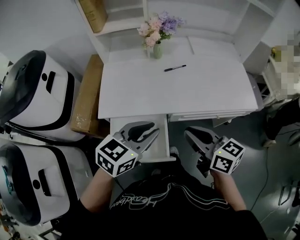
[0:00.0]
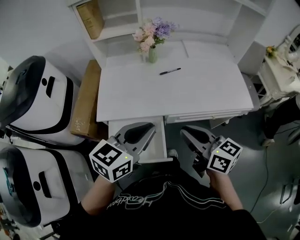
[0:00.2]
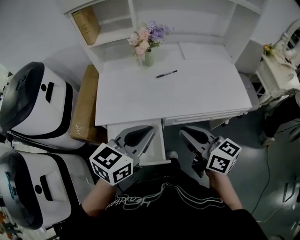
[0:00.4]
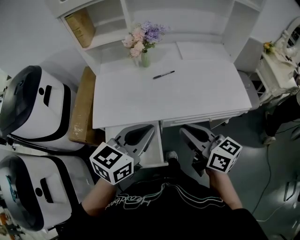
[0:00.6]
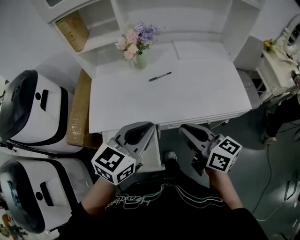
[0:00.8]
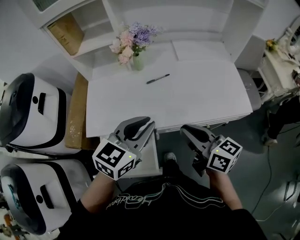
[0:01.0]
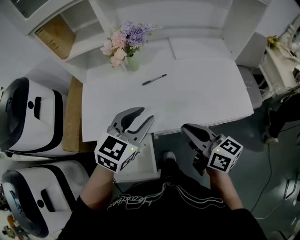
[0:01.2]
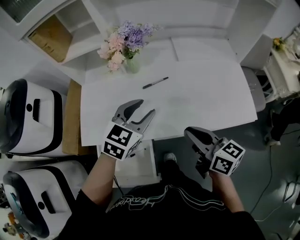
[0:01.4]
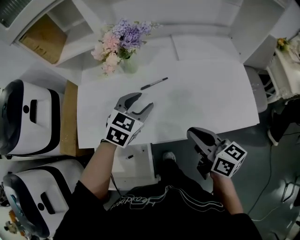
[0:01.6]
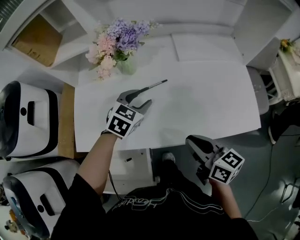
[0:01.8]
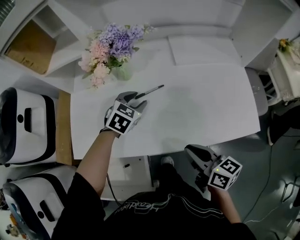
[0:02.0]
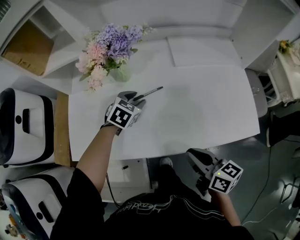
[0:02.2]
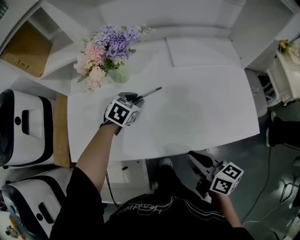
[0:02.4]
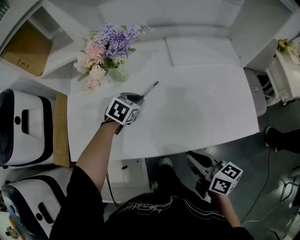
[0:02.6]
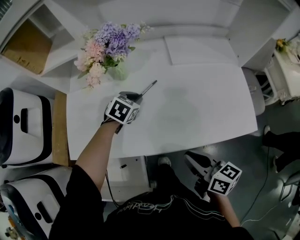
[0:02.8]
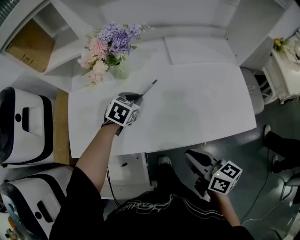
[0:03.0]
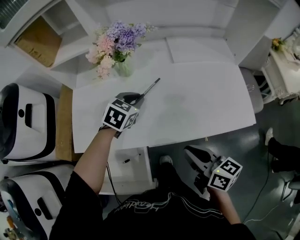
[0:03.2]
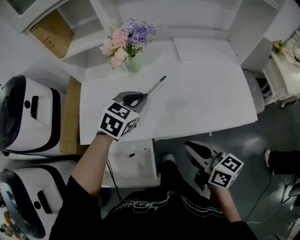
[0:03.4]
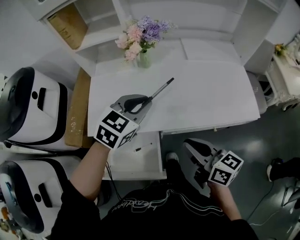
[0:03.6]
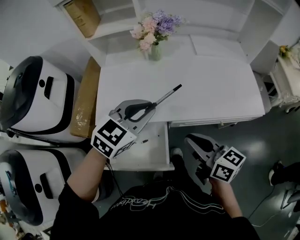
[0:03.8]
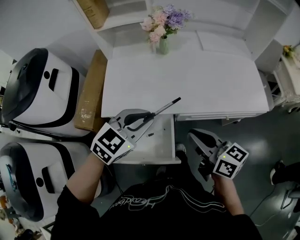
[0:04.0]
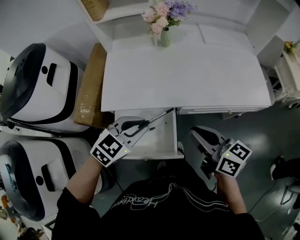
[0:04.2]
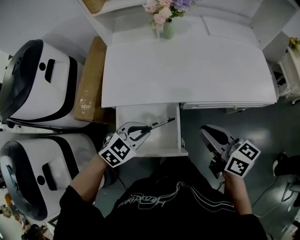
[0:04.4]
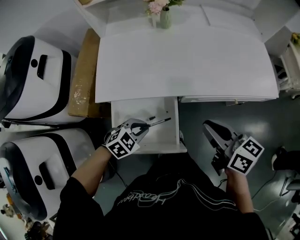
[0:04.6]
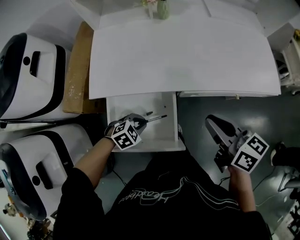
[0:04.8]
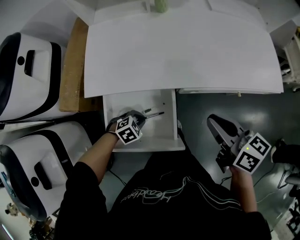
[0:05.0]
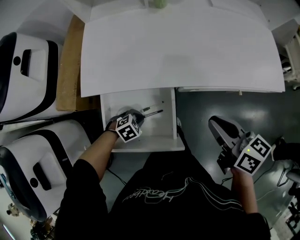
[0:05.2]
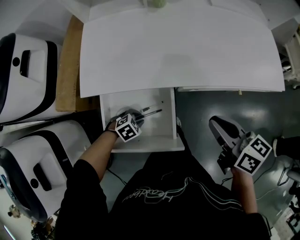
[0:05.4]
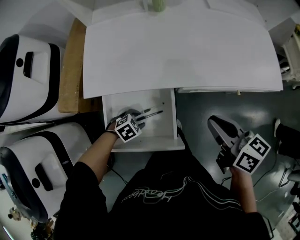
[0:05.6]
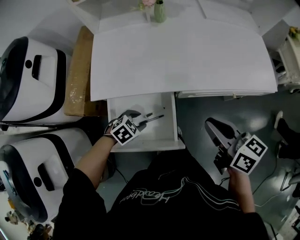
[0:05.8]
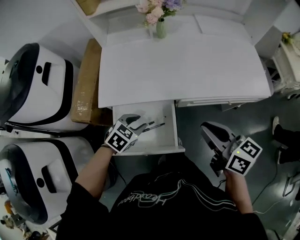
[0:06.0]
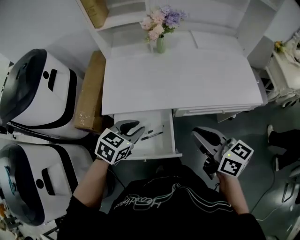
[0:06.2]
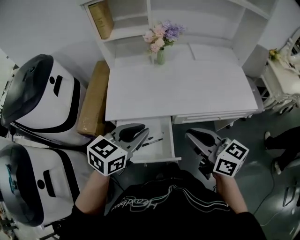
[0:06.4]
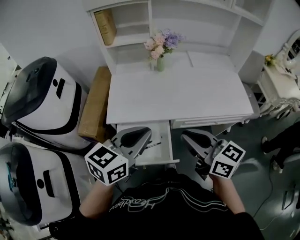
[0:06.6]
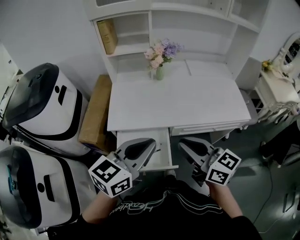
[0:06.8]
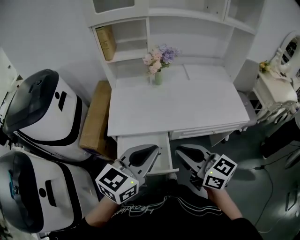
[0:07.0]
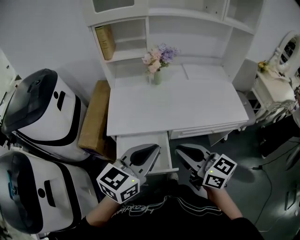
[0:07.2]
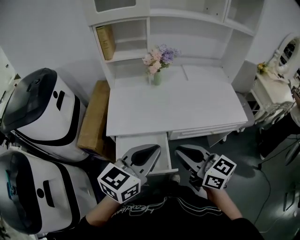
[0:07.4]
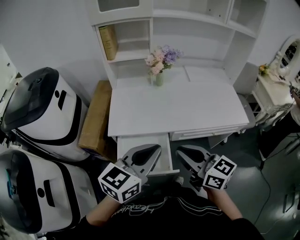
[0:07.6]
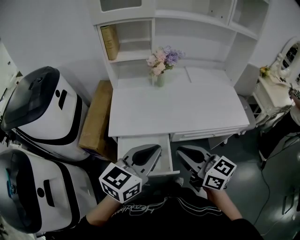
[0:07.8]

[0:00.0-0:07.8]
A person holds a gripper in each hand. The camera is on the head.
0:00.0 to 0:01.6: The left gripper travels forward by about 30 cm, changes its angle by roughly 20 degrees, and opens its fingers. Meanwhile the right gripper moves forward and to the right, roughly 25 cm.
0:01.6 to 0:03.2: The left gripper closes up; the right gripper travels backward by approximately 5 cm.
0:03.2 to 0:04.6: The left gripper travels backward and to the left by about 40 cm, and changes its angle by about 20 degrees. The right gripper shifts about 15 cm to the left and backward.
0:04.6 to 0:06.2: The right gripper goes roughly 10 cm upward, while the left gripper heads upward, covering some 15 cm, turns by some 30 degrees, and opens, then closes once more.
0:06.2 to 0:07.8: The left gripper heads upward and backward, covering roughly 20 cm, tips its fingers upward by some 30 degrees, and closes up. The right gripper moves upward and to the left, some 10 cm.

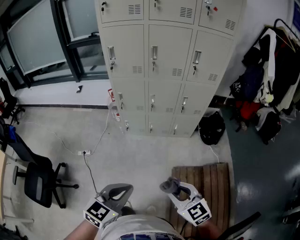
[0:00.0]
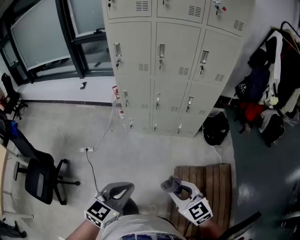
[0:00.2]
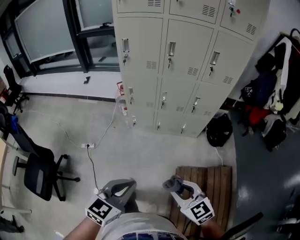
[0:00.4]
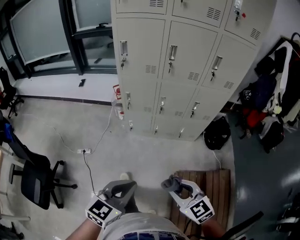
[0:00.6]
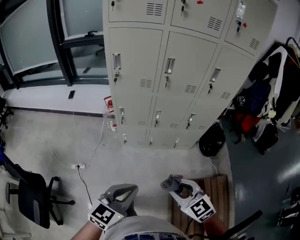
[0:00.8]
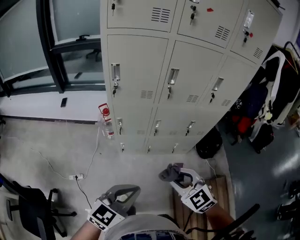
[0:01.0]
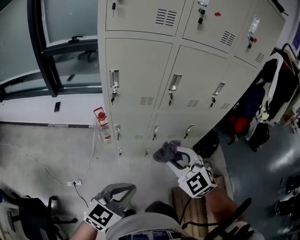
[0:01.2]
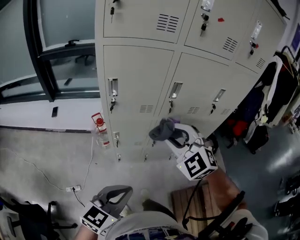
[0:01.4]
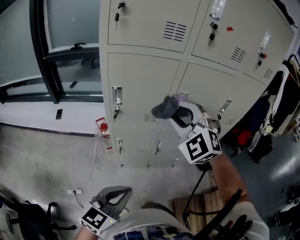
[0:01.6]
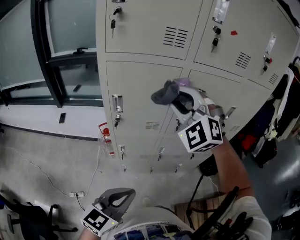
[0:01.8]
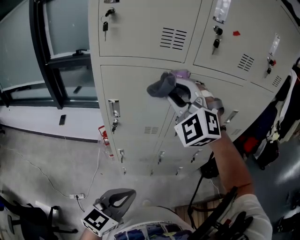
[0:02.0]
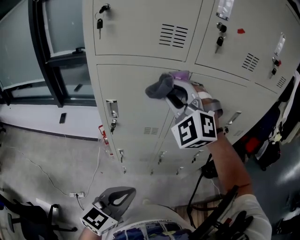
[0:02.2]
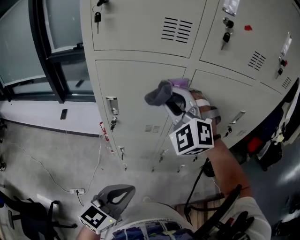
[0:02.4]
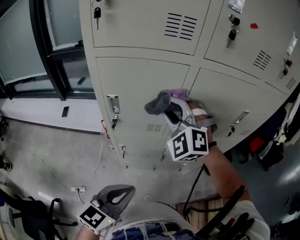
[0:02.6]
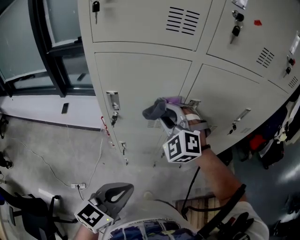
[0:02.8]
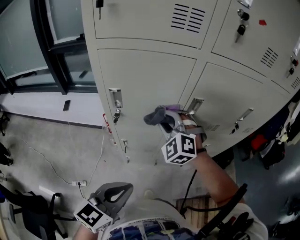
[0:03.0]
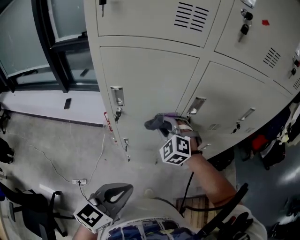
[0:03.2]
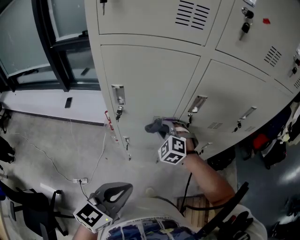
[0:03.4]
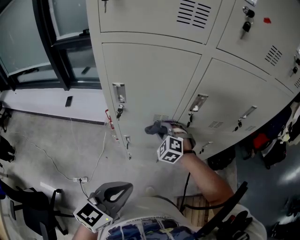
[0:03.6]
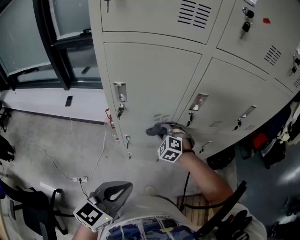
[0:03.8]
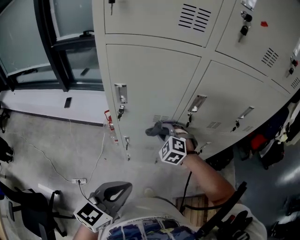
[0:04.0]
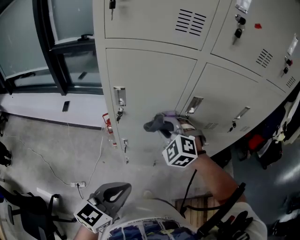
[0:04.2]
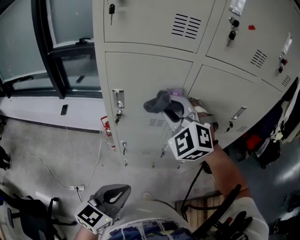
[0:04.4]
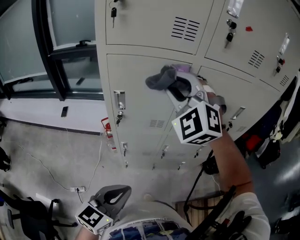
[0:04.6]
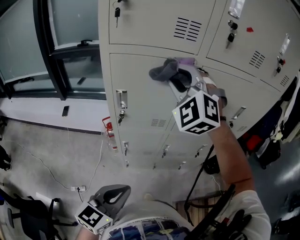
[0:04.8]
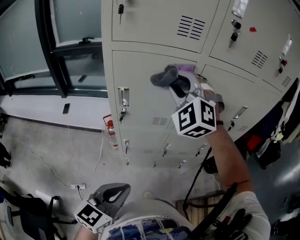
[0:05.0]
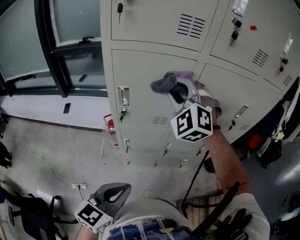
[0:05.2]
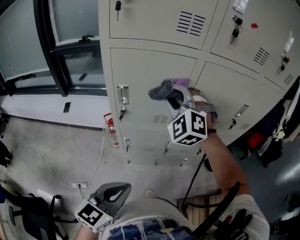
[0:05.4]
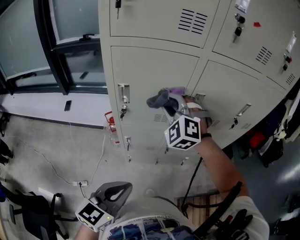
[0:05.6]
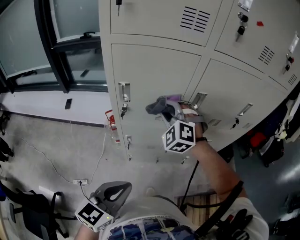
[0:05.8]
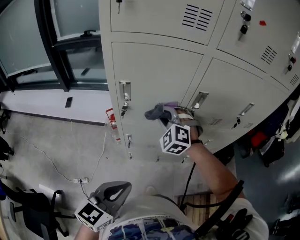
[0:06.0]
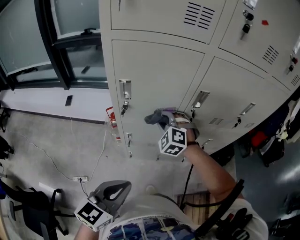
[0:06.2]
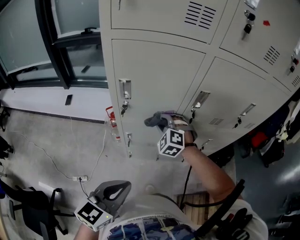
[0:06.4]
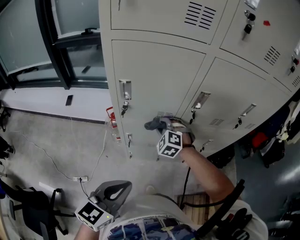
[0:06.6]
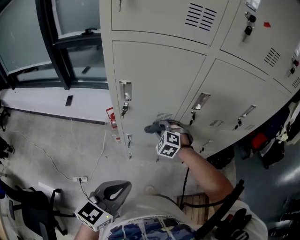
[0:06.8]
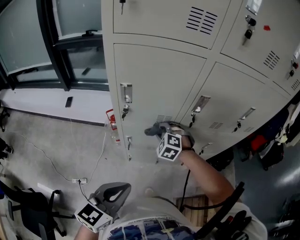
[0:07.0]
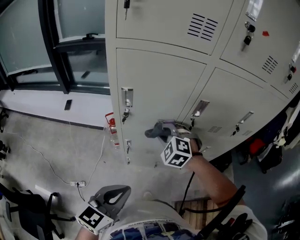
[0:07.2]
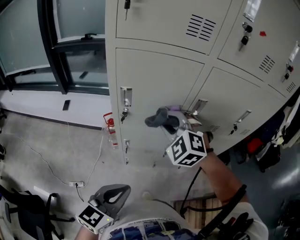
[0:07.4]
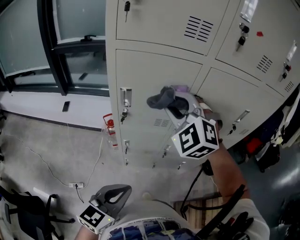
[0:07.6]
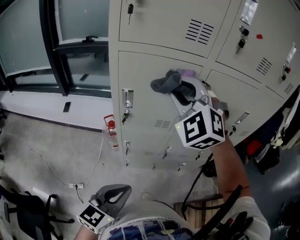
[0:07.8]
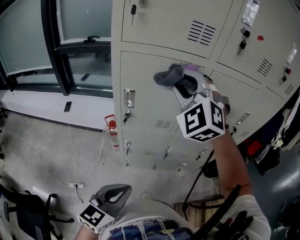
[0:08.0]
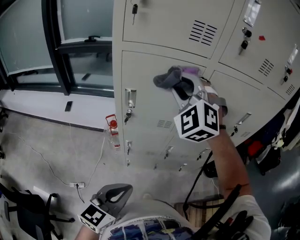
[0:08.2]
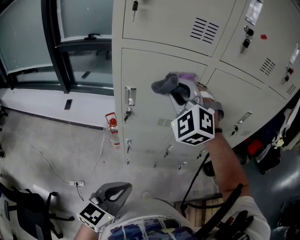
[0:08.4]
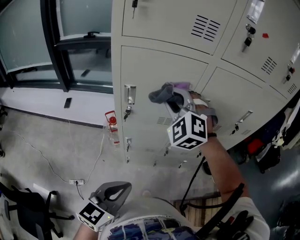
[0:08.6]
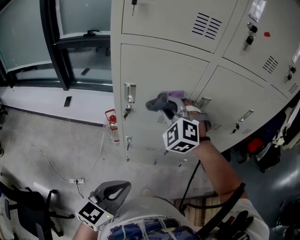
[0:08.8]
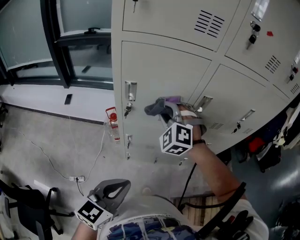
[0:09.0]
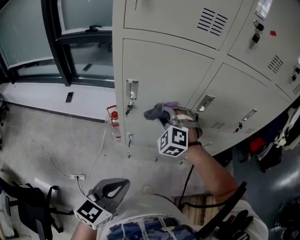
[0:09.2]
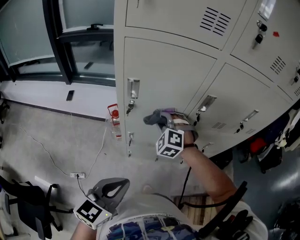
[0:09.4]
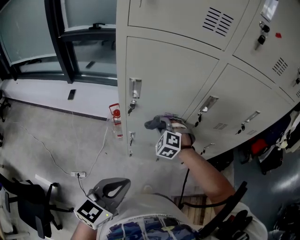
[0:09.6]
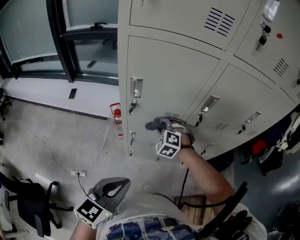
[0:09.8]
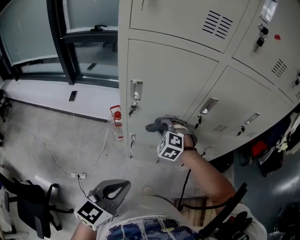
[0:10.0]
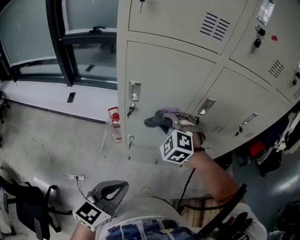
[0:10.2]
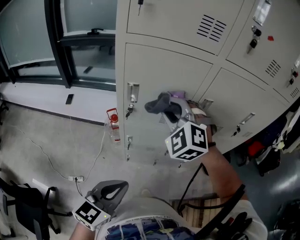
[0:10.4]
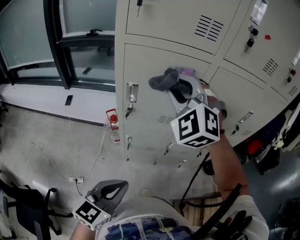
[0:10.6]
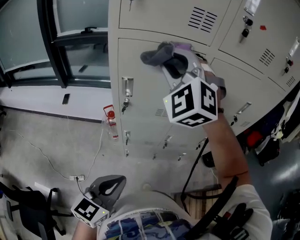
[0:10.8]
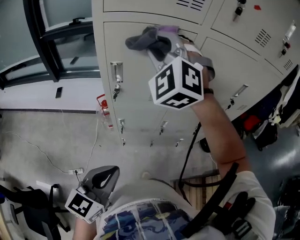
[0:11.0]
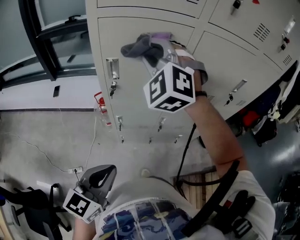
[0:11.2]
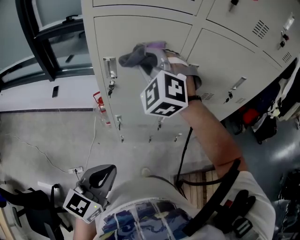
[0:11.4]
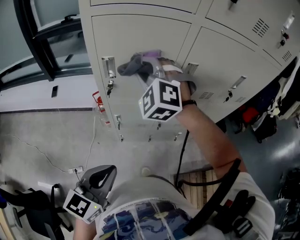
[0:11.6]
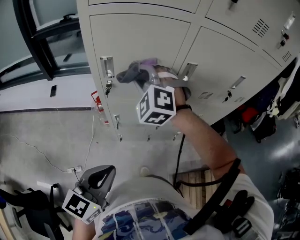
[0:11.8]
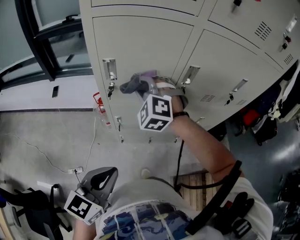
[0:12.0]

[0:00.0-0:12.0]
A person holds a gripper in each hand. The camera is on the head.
0:00.0 to 0:01.6: The pair of grippers is taken forward and to the left, some 50 cm. The right gripper shifts some 25 cm upward, and rotates around the line of its fingers by roughly 50 degrees, counterclockwise from behind.
0:01.6 to 0:03.0: The left gripper travels forward by about 10 cm, while the right gripper is displaced downward and forward by roughly 20 cm.
0:03.0 to 0:04.4: The right gripper heads upward, covering approximately 15 cm.
0:04.4 to 0:06.0: The right gripper travels downward by roughly 15 cm.
0:06.0 to 0:07.6: The right gripper shifts approximately 15 cm upward.
0:07.6 to 0:09.0: The right gripper heads downward, covering some 15 cm.
0:09.0 to 0:10.4: The right gripper reaches about 15 cm downward, then returns.
0:10.4 to 0:12.0: The right gripper goes some 10 cm downward.

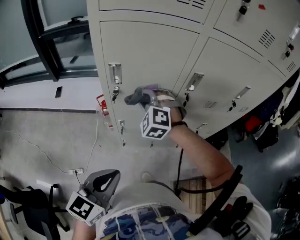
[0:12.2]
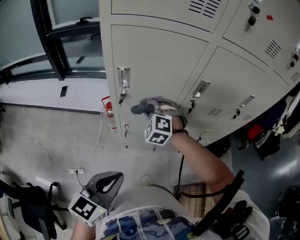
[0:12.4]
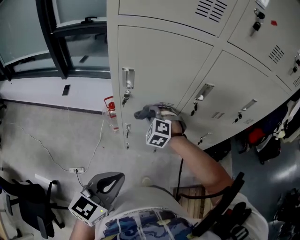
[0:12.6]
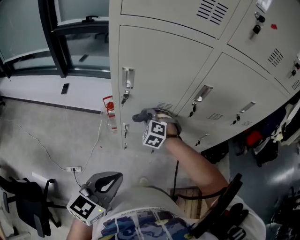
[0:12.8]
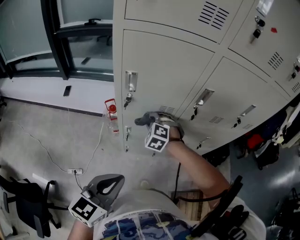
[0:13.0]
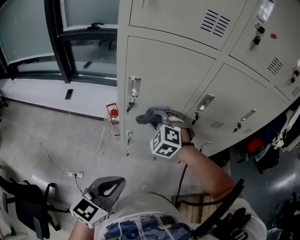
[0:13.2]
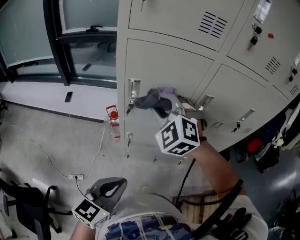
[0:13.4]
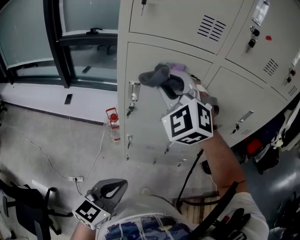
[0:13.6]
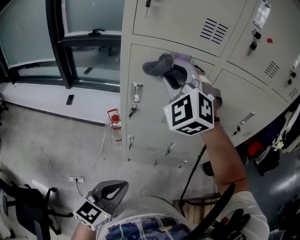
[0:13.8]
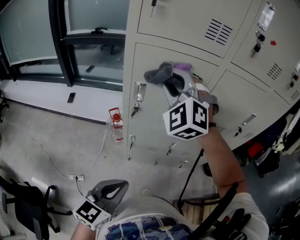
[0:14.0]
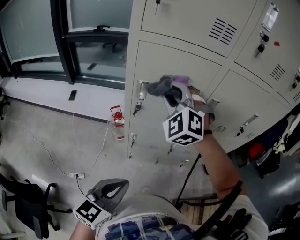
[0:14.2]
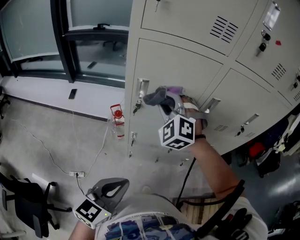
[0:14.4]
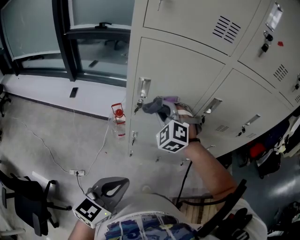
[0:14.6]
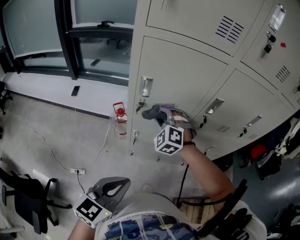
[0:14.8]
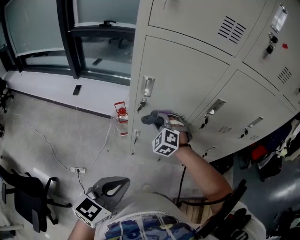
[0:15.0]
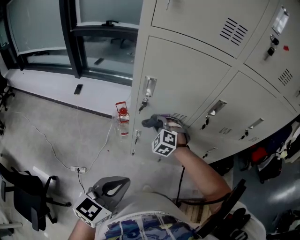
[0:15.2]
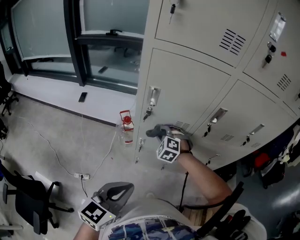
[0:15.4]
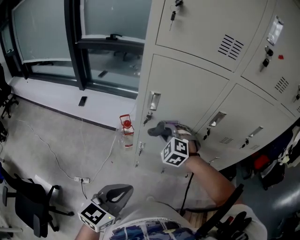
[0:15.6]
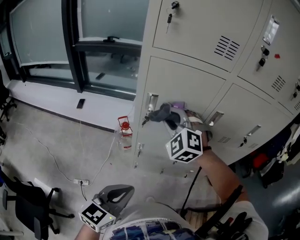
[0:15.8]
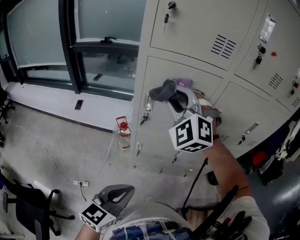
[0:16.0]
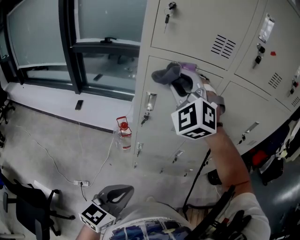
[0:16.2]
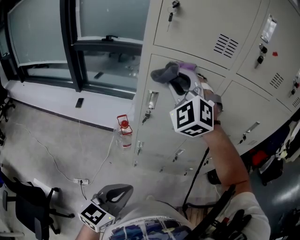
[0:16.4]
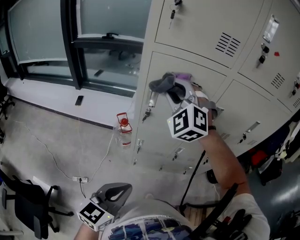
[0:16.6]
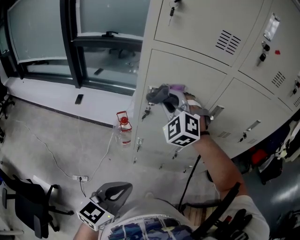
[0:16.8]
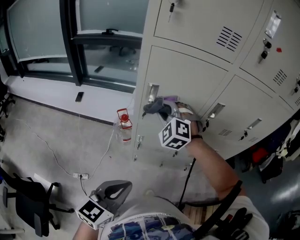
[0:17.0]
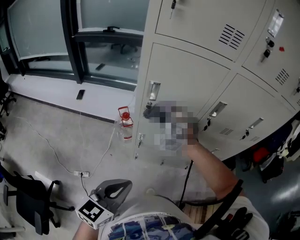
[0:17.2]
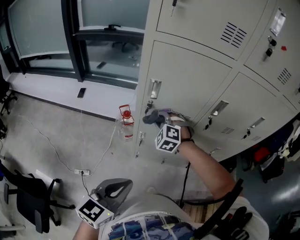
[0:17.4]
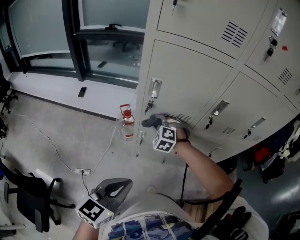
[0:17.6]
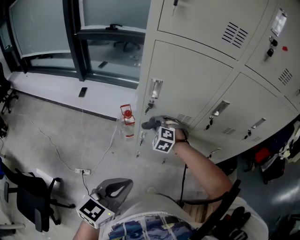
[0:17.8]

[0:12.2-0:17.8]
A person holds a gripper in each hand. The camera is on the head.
0:12.2 to 0:13.6: The right gripper heads upward, covering approximately 25 cm, and rotates roughly 20 degrees.
0:13.6 to 0:15.0: The right gripper goes about 30 cm downward, and changes its angle by some 20 degrees.
0:15.0 to 0:16.4: The right gripper moves upward, about 30 cm, and swivels some 30 degrees.
0:16.4 to 0:17.8: The right gripper shifts some 40 cm downward, and tips its fingers downward by some 40 degrees.
